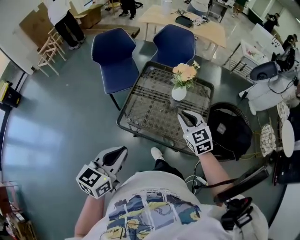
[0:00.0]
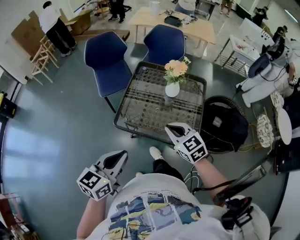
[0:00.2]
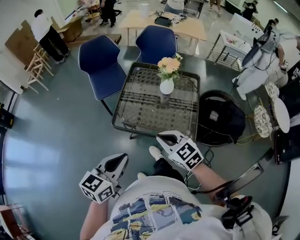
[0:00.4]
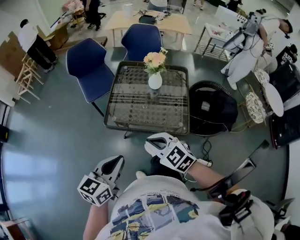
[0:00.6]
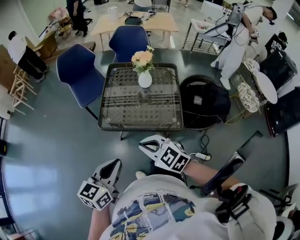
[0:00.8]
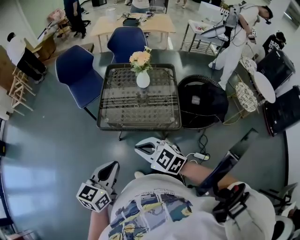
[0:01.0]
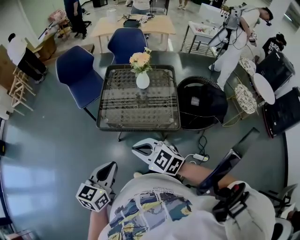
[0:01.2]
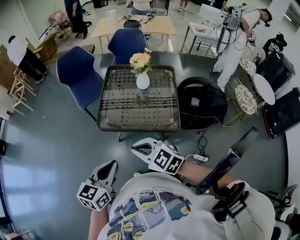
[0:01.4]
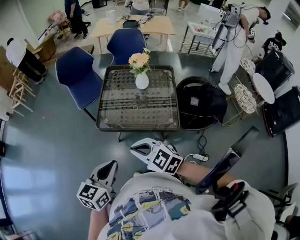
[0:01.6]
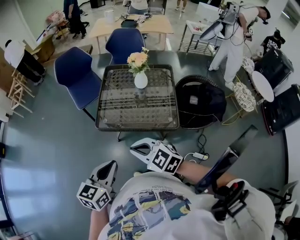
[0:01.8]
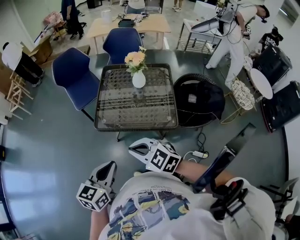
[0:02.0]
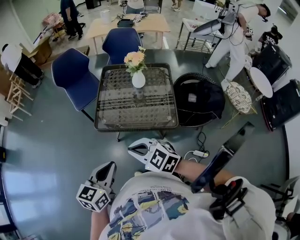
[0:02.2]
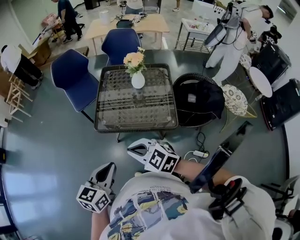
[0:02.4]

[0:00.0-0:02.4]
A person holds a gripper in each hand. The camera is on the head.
0:00.0 to 0:01.2: The left gripper travels backward by some 15 cm; the right gripper travels backward and to the left by some 30 cm, and changes its angle by about 20 degrees.
0:01.2 to 0:02.4: Both grippers stay put.

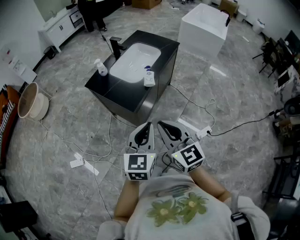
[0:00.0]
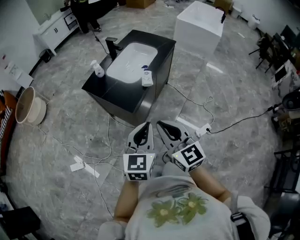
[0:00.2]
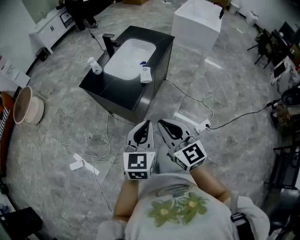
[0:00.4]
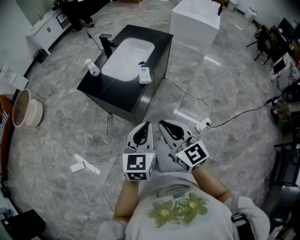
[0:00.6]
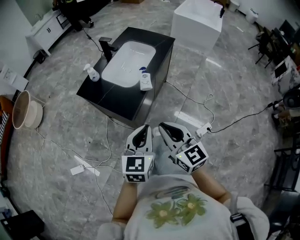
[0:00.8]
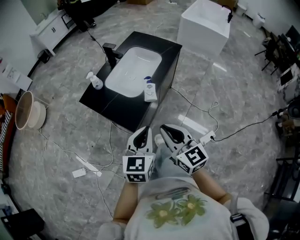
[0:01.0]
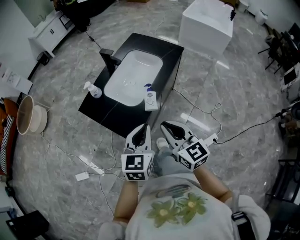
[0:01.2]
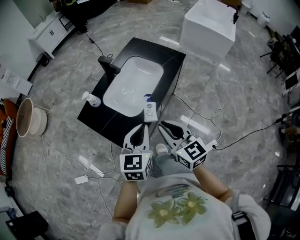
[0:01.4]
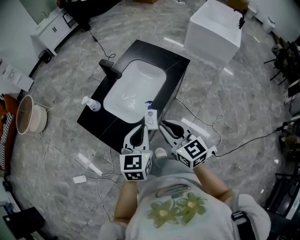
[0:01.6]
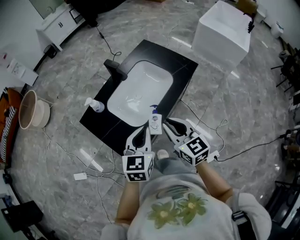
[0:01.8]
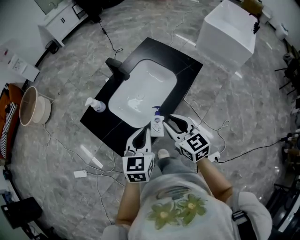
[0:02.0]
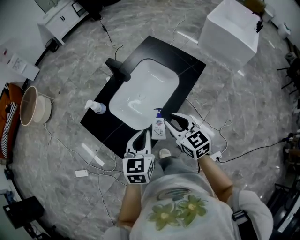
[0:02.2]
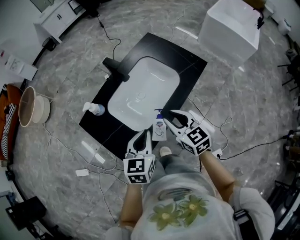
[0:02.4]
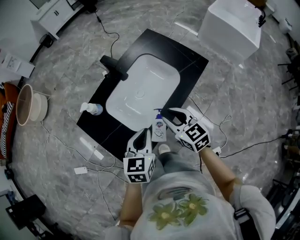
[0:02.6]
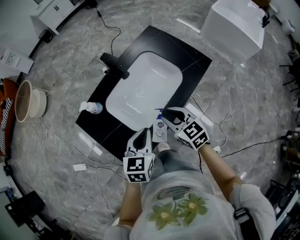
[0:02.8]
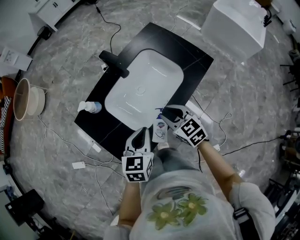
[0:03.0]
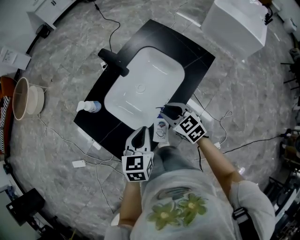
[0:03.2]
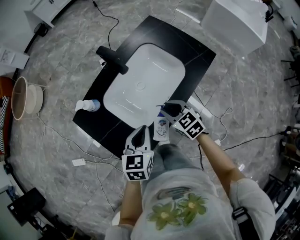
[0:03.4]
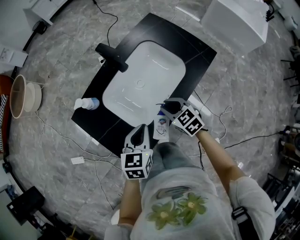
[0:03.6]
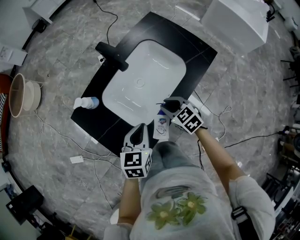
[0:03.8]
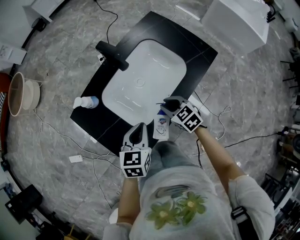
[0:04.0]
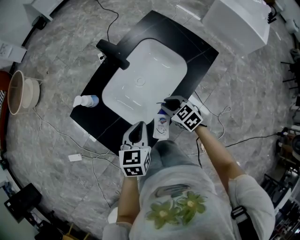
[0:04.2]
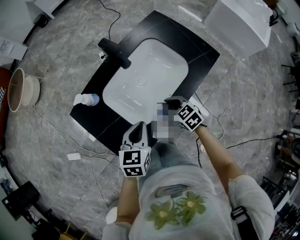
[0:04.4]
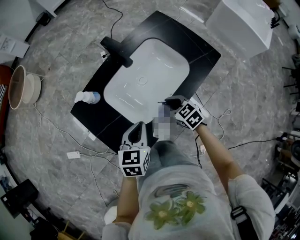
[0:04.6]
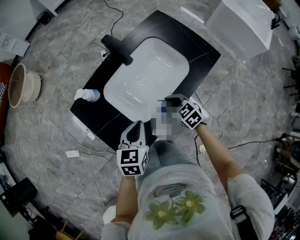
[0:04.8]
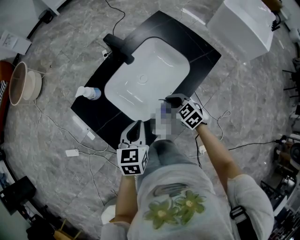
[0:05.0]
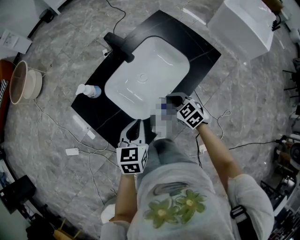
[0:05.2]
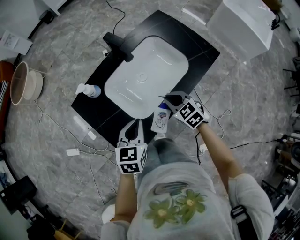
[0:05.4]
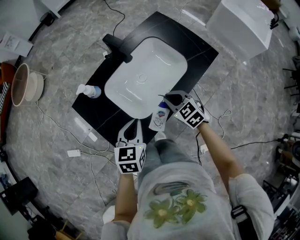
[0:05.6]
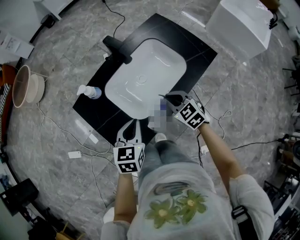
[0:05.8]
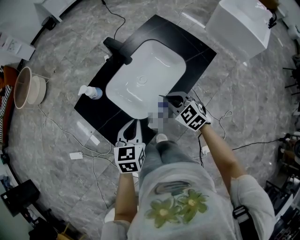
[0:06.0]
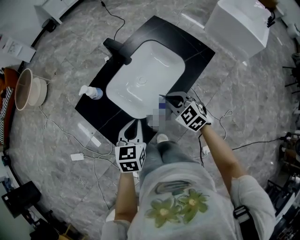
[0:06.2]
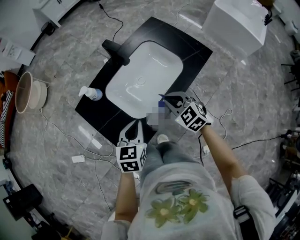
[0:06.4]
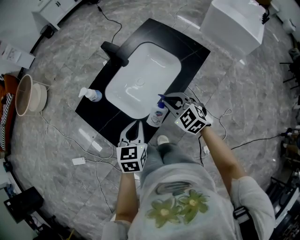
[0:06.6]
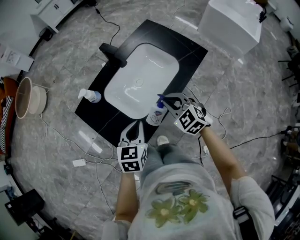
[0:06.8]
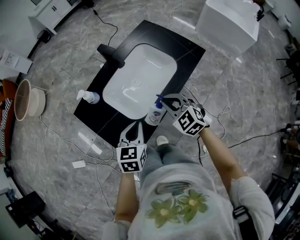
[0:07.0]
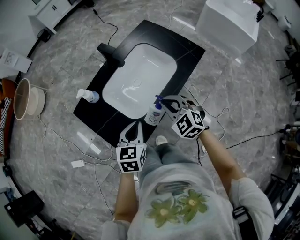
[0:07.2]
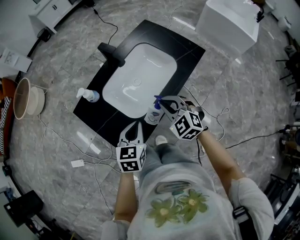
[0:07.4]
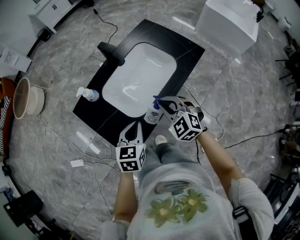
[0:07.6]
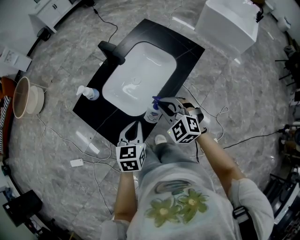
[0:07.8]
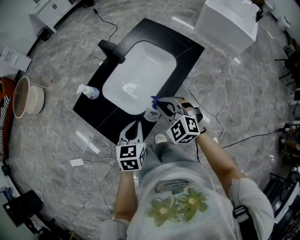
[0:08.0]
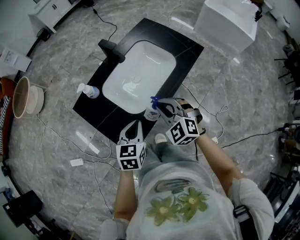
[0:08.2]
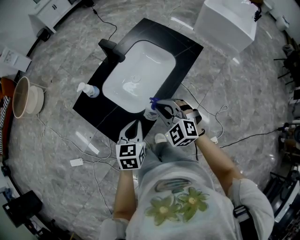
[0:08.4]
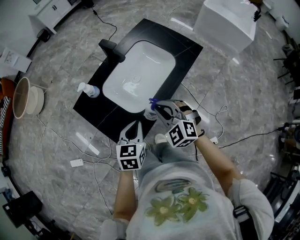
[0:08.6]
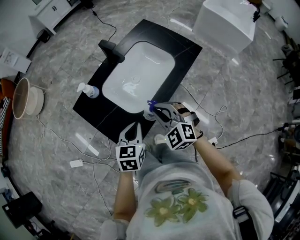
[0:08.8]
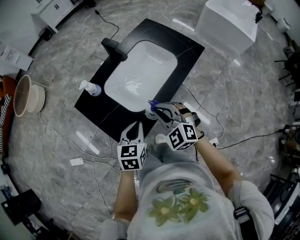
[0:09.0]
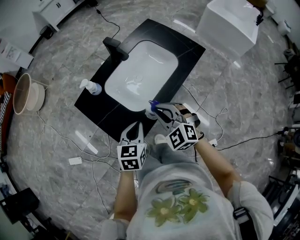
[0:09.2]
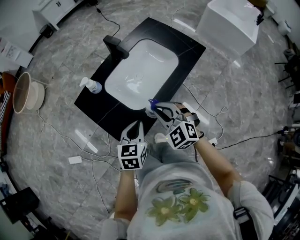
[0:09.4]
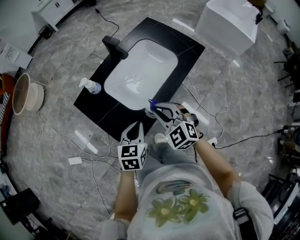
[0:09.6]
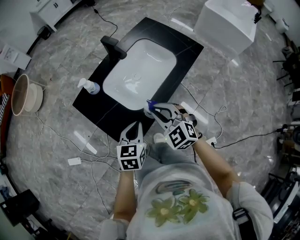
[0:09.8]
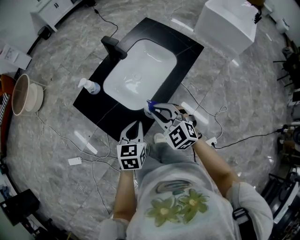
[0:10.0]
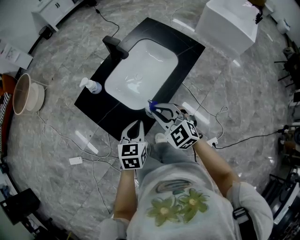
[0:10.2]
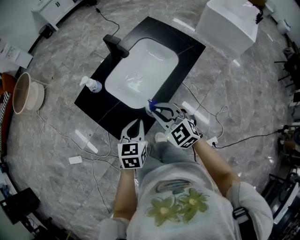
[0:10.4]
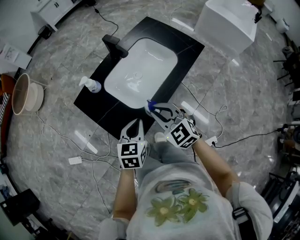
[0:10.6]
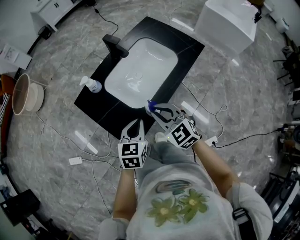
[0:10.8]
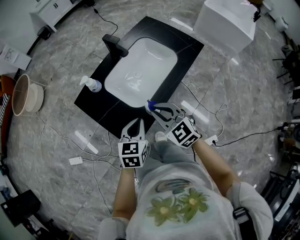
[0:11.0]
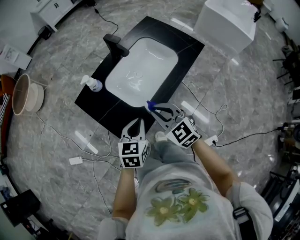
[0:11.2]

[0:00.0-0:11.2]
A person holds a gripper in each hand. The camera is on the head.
0:00.0 to 0:01.6: The grippers both shift forward by about 40 cm.
0:01.6 to 0:03.2: Both grippers travel together forward and downward, roughly 25 cm. The right gripper rotates some 30 degrees.
0:03.2 to 0:04.8: The right gripper shifts approximately 5 cm downward.
0:04.8 to 0:06.4: The left gripper shifts by some 5 cm. Meanwhile the right gripper travels upward by some 10 cm.
0:06.4 to 0:08.0: The right gripper travels backward by approximately 5 cm.
0:08.0 to 0:09.6: The right gripper shifts by about 5 cm.
0:09.6 to 0:11.2: There are only small adjustments of the grippers.

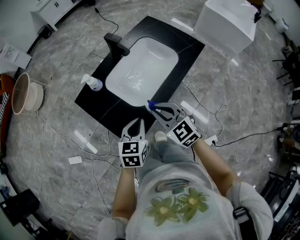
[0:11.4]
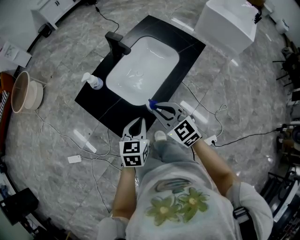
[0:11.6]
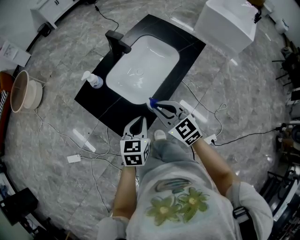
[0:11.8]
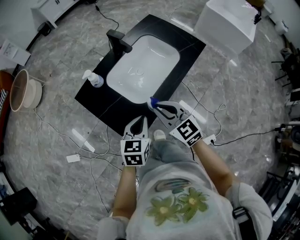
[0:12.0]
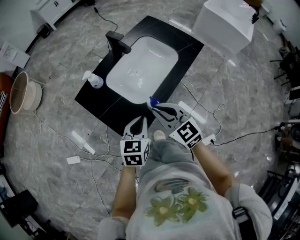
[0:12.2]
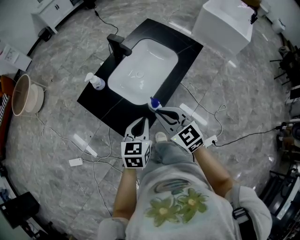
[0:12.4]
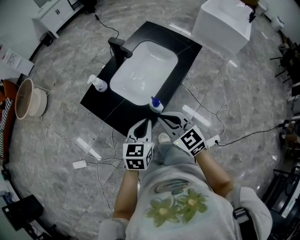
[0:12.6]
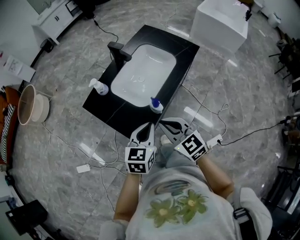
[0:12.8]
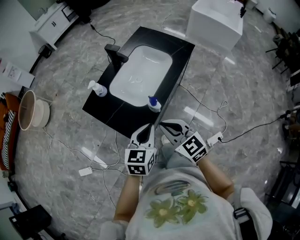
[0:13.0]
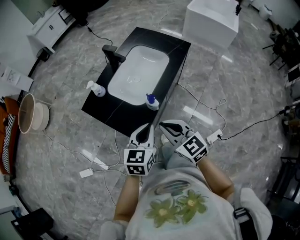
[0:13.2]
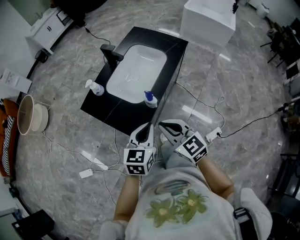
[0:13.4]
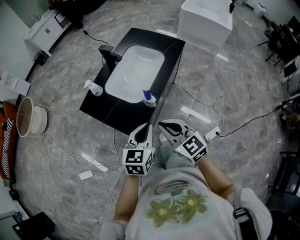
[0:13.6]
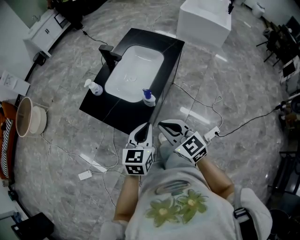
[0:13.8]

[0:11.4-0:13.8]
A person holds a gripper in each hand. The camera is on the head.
0:11.4 to 0:12.6: The left gripper moves about 5 cm, while the right gripper shifts some 5 cm backward.
0:12.6 to 0:13.8: The grippers both shift backward by roughly 10 cm.

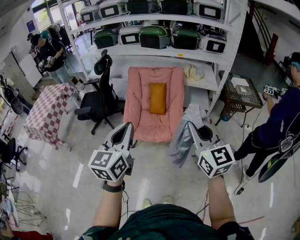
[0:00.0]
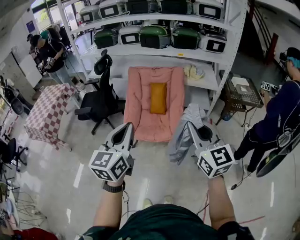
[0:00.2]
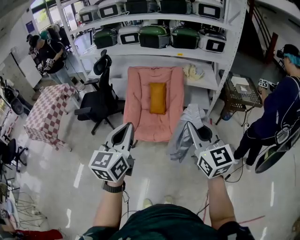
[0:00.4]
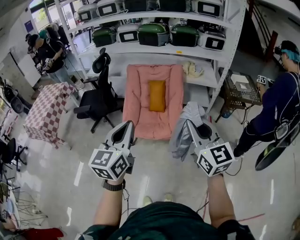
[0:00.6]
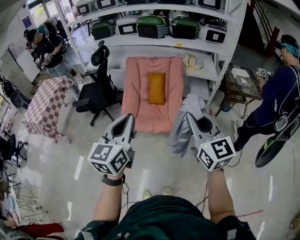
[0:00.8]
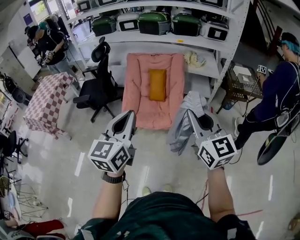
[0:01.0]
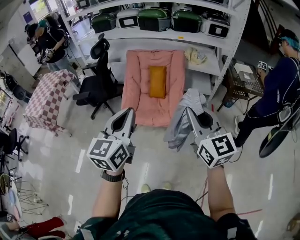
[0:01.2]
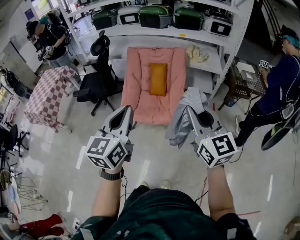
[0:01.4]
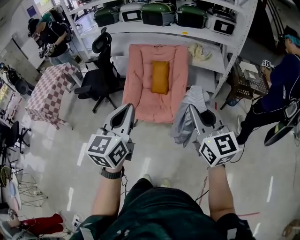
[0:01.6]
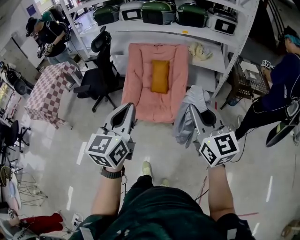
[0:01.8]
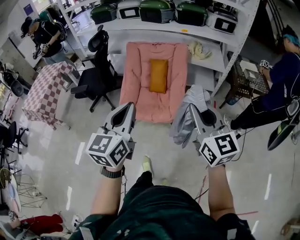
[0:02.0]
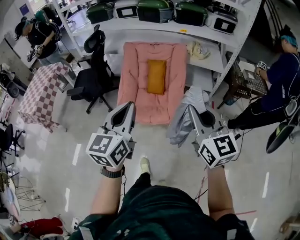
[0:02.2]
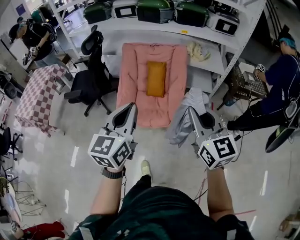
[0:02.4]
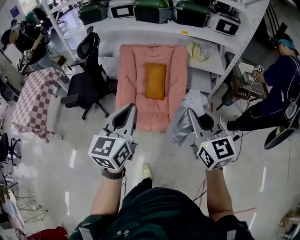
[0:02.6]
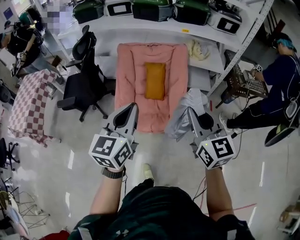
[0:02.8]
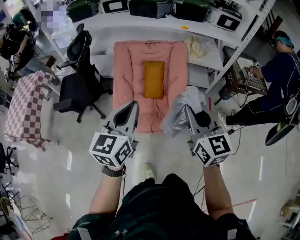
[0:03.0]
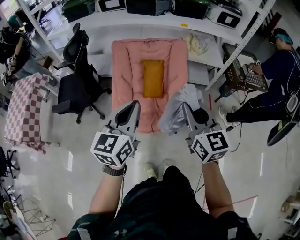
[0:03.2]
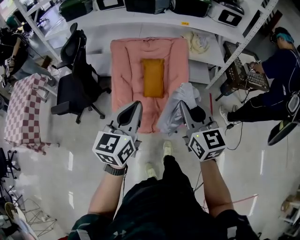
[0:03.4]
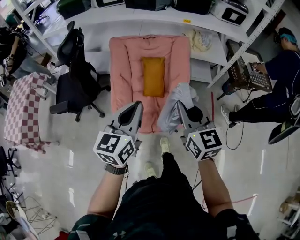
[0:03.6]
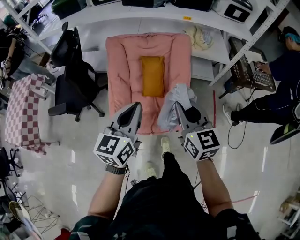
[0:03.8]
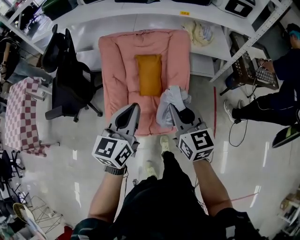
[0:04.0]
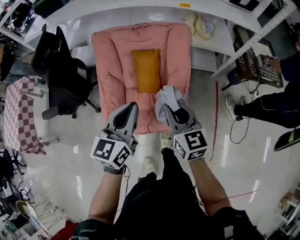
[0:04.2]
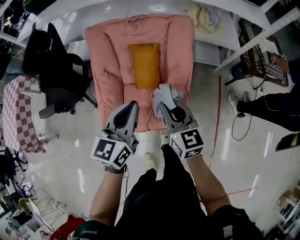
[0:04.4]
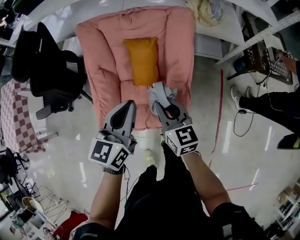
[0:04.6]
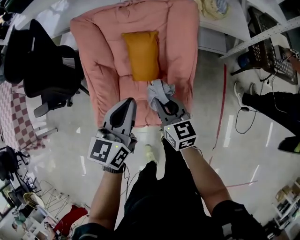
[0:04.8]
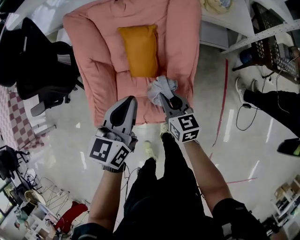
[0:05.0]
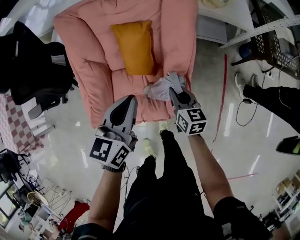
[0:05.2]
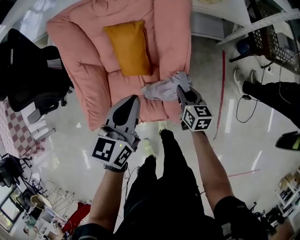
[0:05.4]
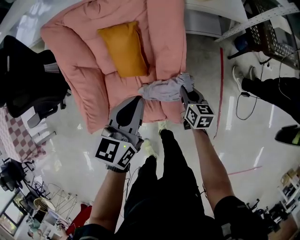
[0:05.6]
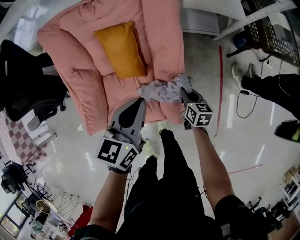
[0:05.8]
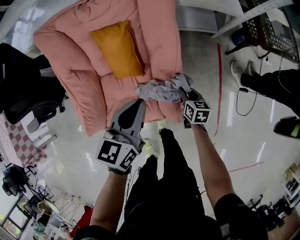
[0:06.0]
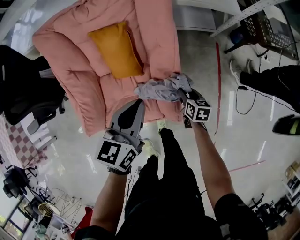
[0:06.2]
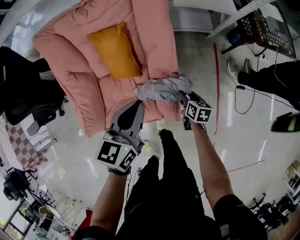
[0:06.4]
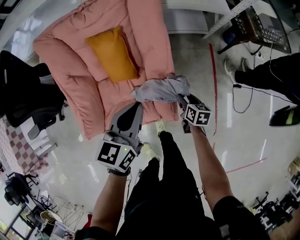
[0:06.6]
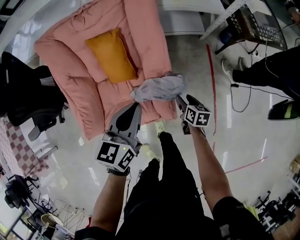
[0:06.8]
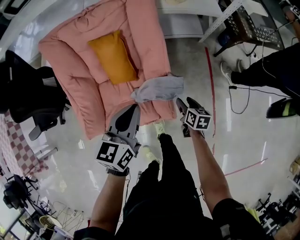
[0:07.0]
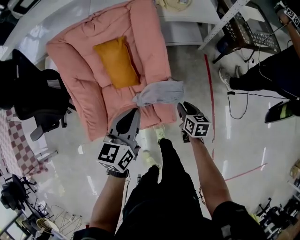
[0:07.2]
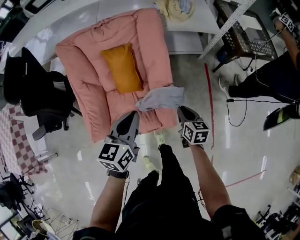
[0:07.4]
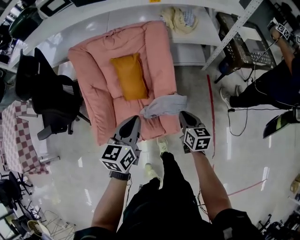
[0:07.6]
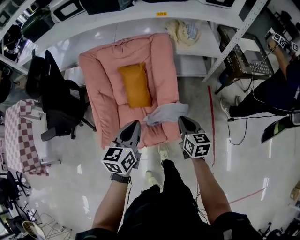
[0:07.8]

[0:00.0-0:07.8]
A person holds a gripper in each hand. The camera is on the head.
0:00.0 to 0:01.6: The left gripper is displaced to the right by about 5 cm. The right gripper shifts by some 5 cm.
0:01.6 to 0:03.2: The left gripper heads forward, covering approximately 30 cm, while the right gripper goes some 30 cm forward and to the left.
0:03.2 to 0:04.6: The left gripper is displaced forward and downward by roughly 30 cm. The right gripper travels downward and forward by about 35 cm.
0:04.6 to 0:06.2: The right gripper moves downward and to the right, about 35 cm, angles its fingers downward, by roughly 30 degrees, and opens. Meanwhile the left gripper travels downward and to the right by some 15 cm.
0:06.2 to 0:07.8: The left gripper shifts some 15 cm upward, backward and to the left, while the right gripper shifts approximately 30 cm upward, rotates about 20 degrees, and closes.
